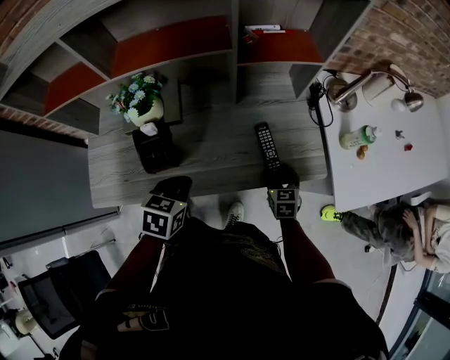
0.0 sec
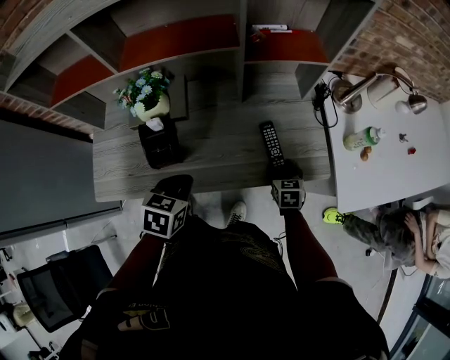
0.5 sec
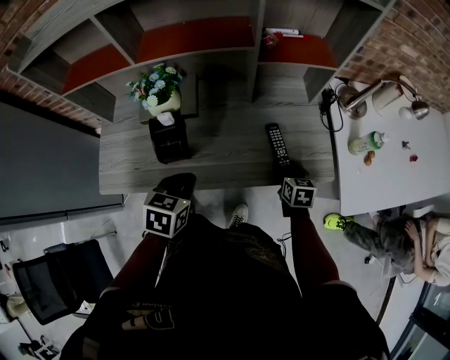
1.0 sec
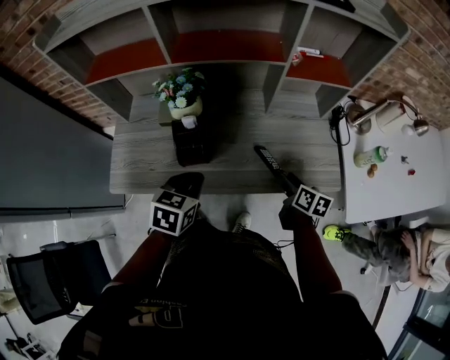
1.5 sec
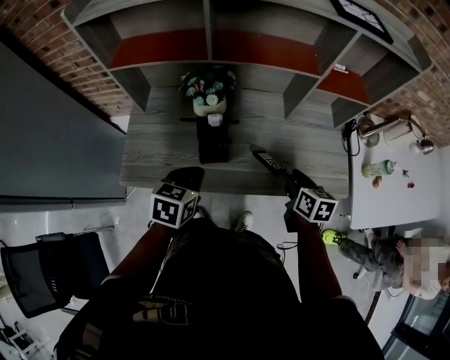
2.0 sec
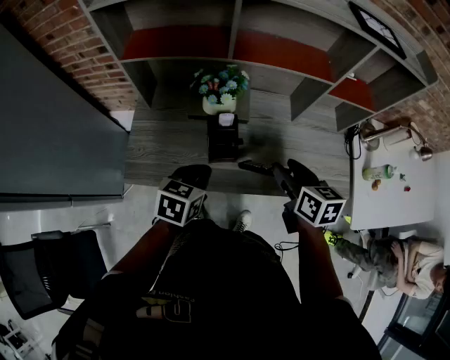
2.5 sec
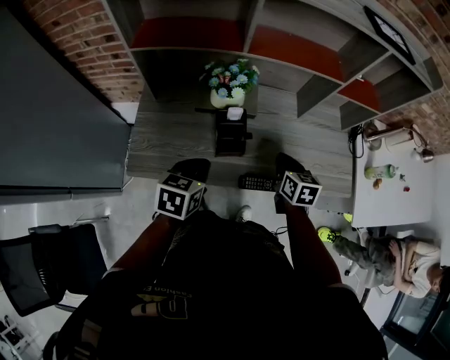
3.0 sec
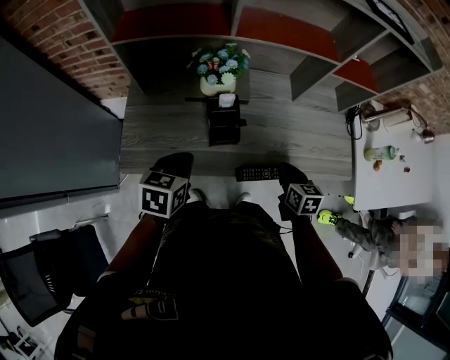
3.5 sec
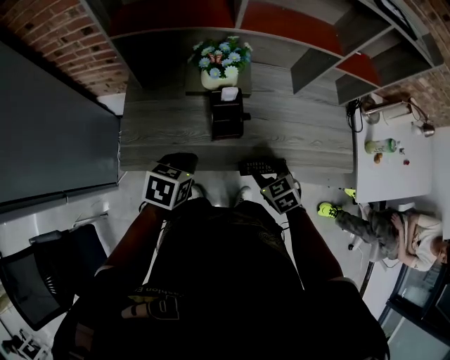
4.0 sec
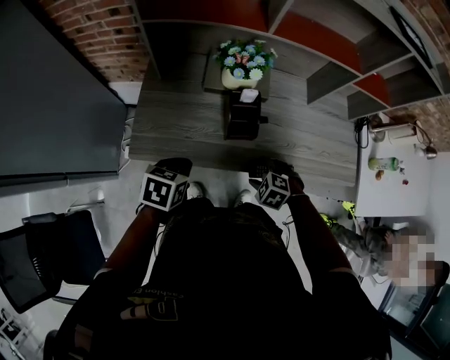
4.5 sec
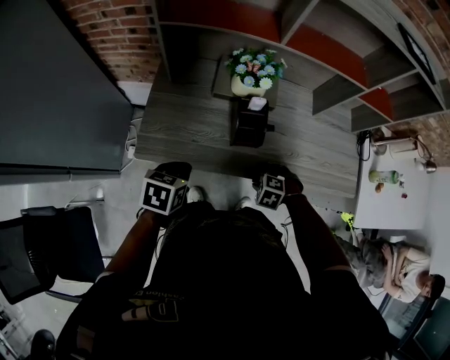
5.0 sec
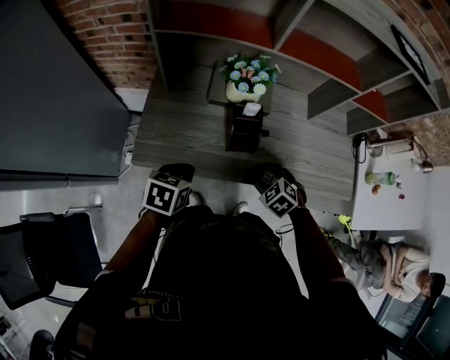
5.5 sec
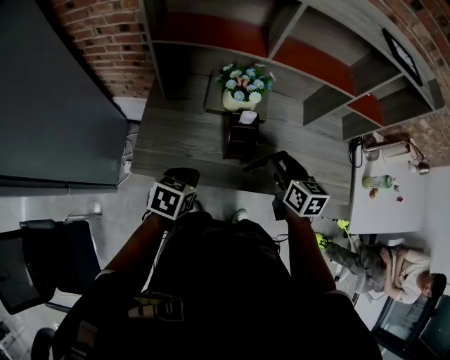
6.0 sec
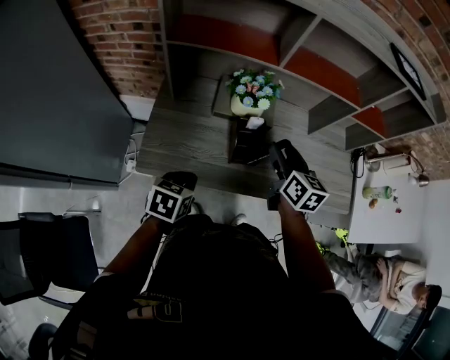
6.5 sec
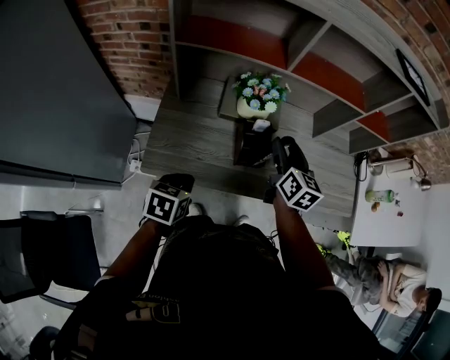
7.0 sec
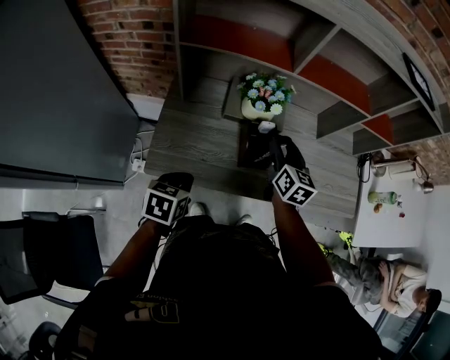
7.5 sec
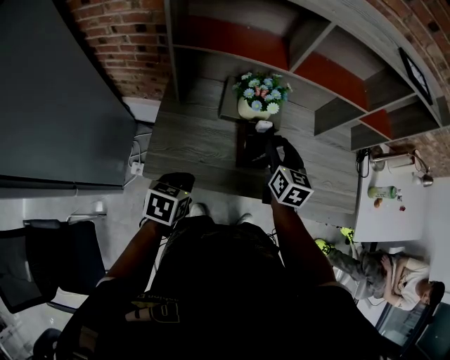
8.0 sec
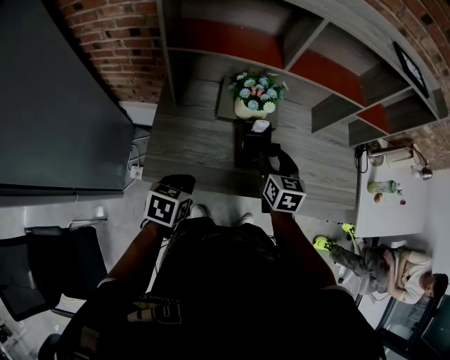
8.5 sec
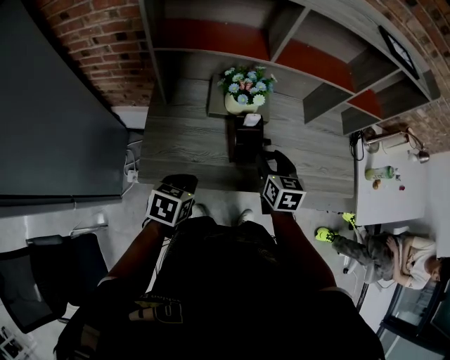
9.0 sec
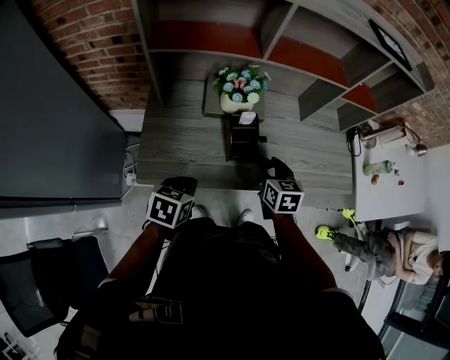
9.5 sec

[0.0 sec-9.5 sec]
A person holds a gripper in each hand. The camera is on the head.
0.0 sec to 2.0 sec: The left gripper is displaced to the left by about 15 cm. Meanwhile the right gripper travels upward and to the left by about 20 cm, and swivels approximately 20 degrees.
2.0 sec to 4.0 sec: The left gripper heads to the left and downward, covering approximately 10 cm. The right gripper goes roughly 20 cm to the left, downward and backward, rotates around the line of its fingers by roughly 40 degrees, counterclockwise from behind, and closes, then opens again.
4.0 sec to 5.5 sec: The left gripper shifts by approximately 5 cm, while the right gripper moves roughly 10 cm downward and comes back, and turns by approximately 30 degrees.
5.5 sec to 7.5 sec: The right gripper is displaced forward and upward by approximately 20 cm, and tilts its fingers some 40 degrees upward.
7.5 sec to 9.5 sec: The right gripper is displaced backward and downward by approximately 10 cm.

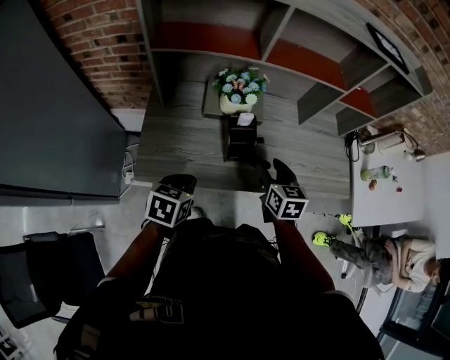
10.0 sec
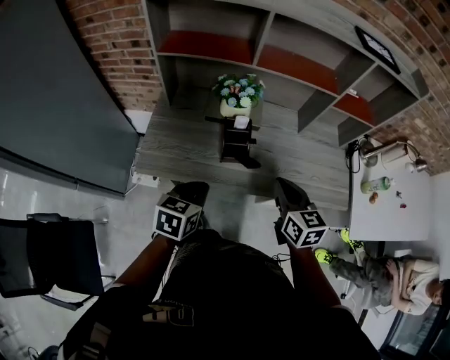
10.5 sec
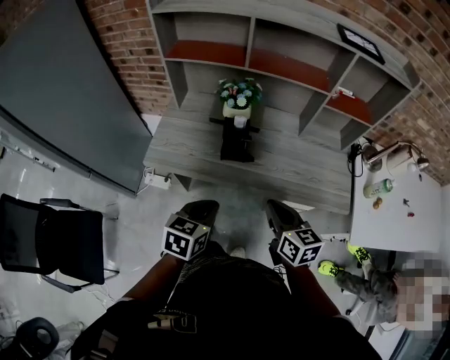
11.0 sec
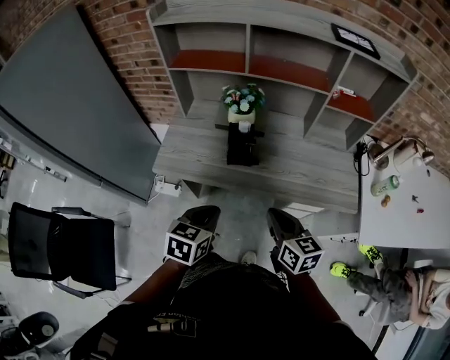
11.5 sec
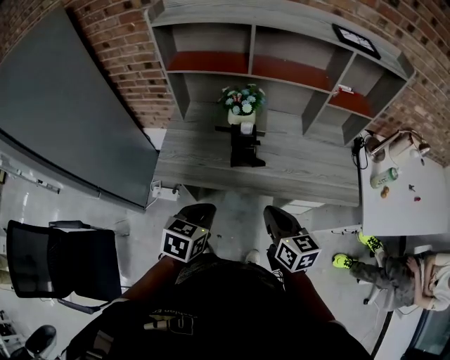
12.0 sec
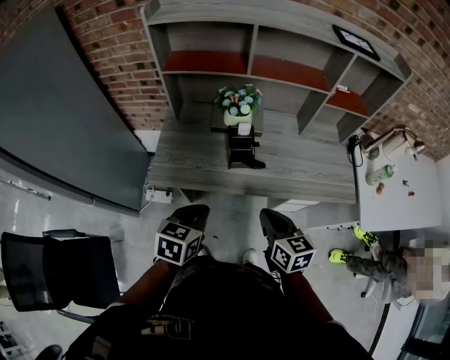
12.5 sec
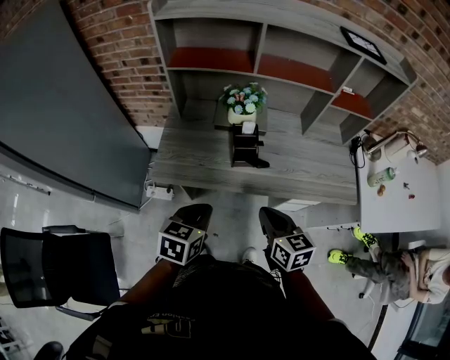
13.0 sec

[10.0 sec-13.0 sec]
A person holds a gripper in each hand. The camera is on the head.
10.0 sec to 11.5 sec: The right gripper heads backward, covering roughly 20 cm, rotates approximately 20 degrees, and closes; the left gripper moves backward, to the right and upward, approximately 20 cm.
11.5 sec to 13.0 sec: Both grippers travel together to the left, about 10 cm.

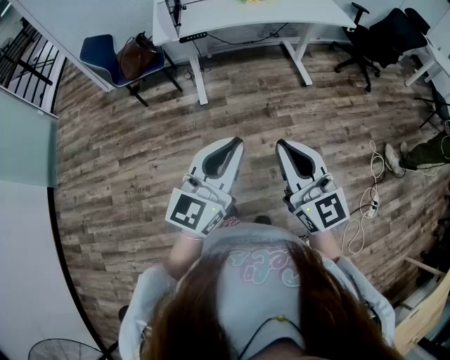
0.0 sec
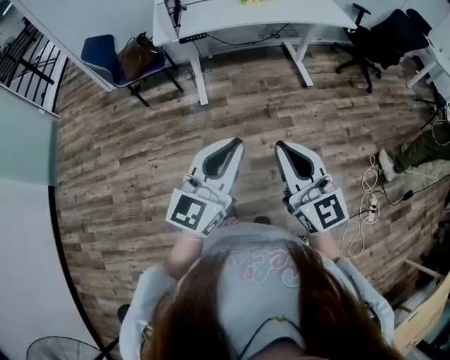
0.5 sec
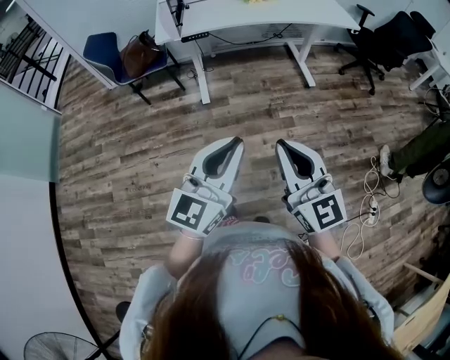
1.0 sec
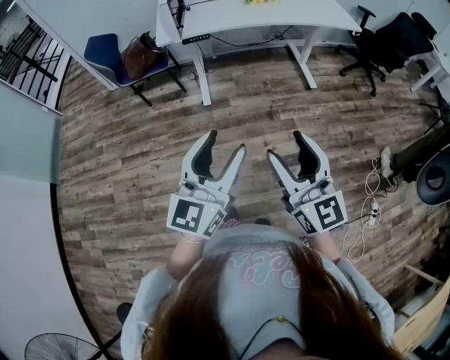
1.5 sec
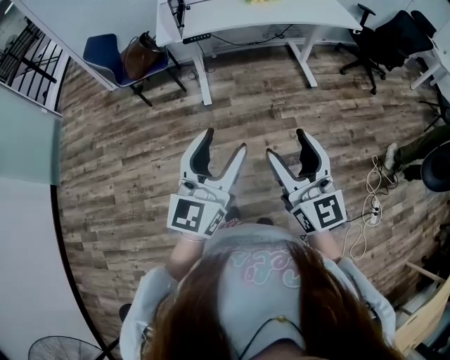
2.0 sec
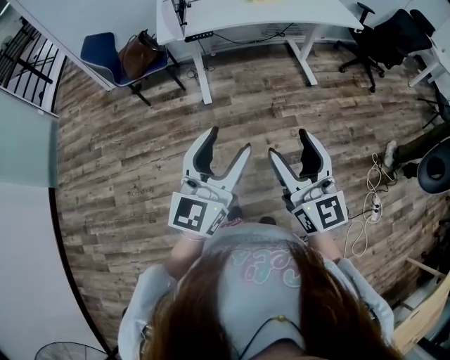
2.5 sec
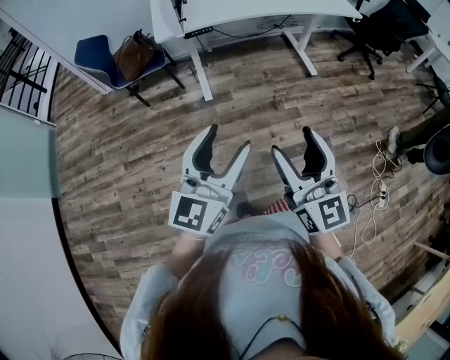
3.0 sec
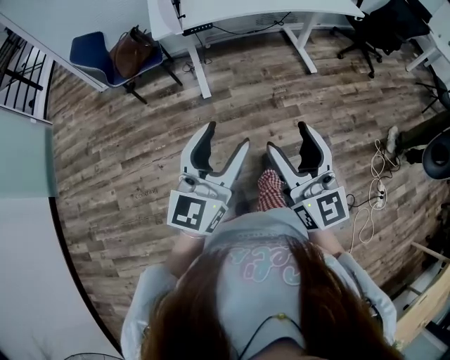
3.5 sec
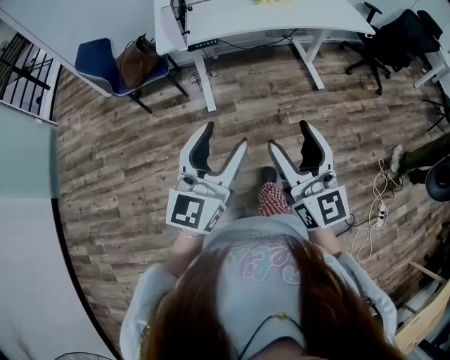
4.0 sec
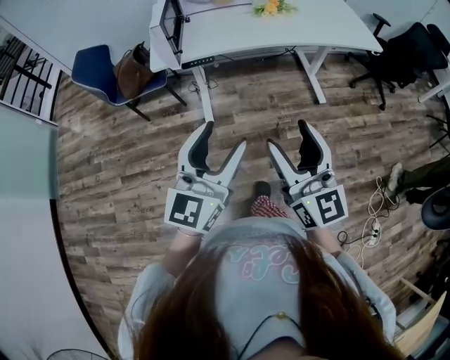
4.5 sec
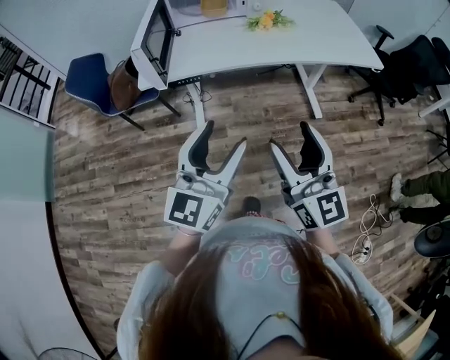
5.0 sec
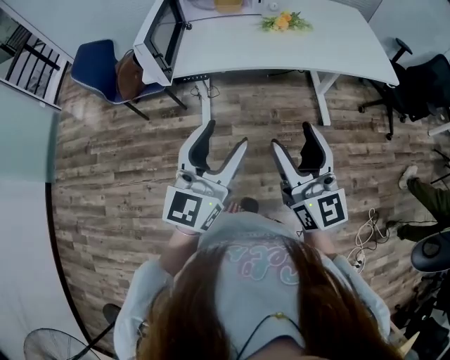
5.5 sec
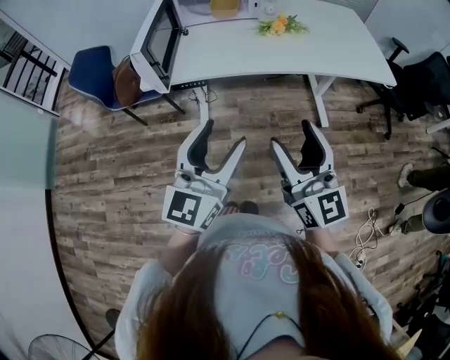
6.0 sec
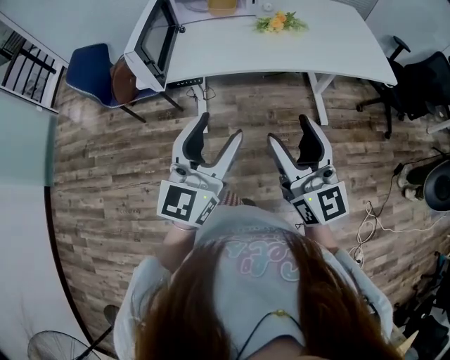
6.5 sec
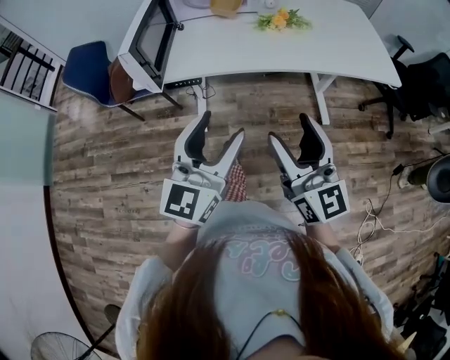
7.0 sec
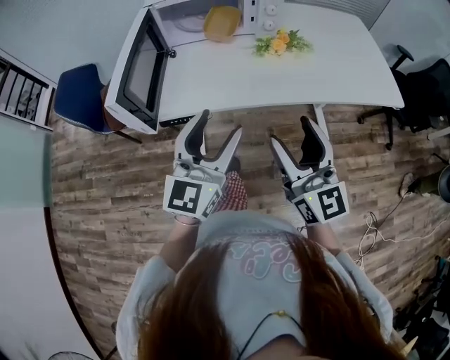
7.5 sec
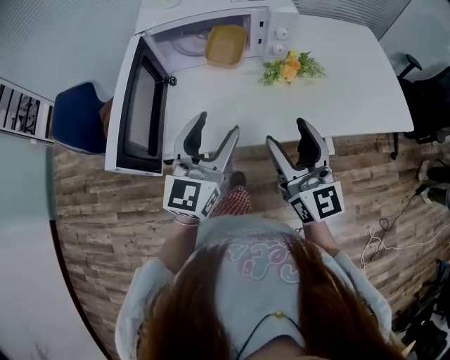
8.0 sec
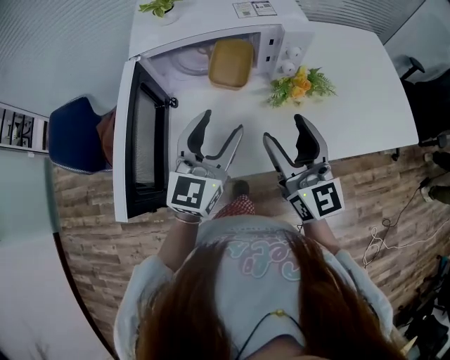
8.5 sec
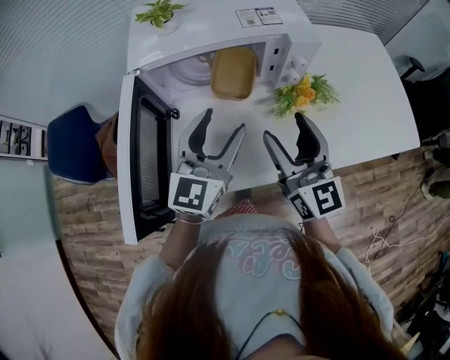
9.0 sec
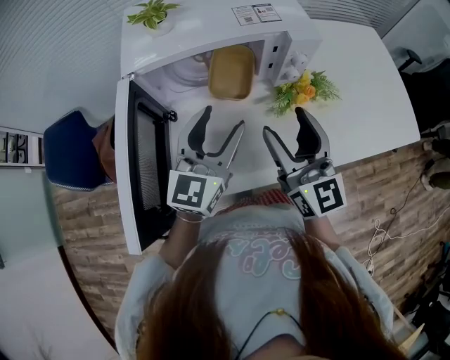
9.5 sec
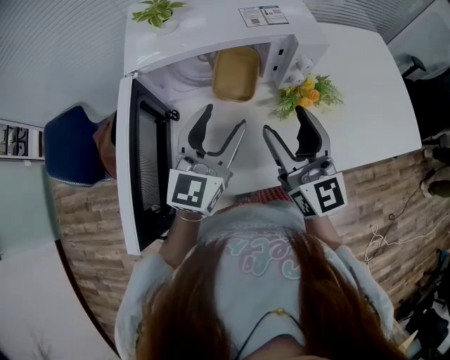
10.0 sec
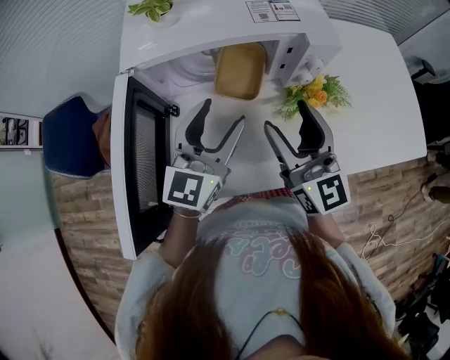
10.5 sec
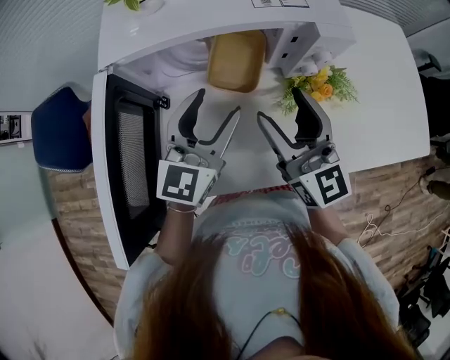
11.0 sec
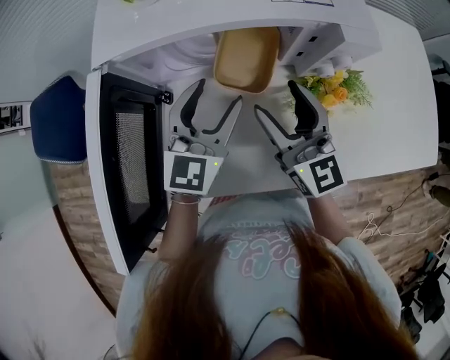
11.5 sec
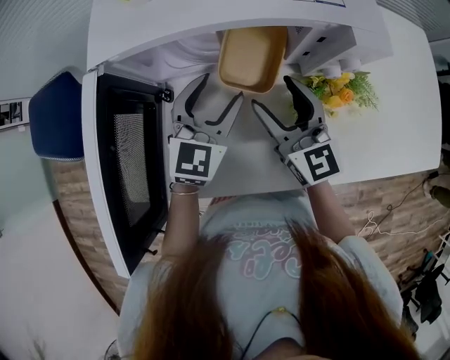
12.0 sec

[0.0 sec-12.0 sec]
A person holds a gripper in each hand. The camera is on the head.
0.0 sec to 2.0 sec: The left gripper opens, while the right gripper opens up.
2.0 sec to 4.0 sec: Both grippers move forward and to the left, some 15 cm.
4.0 sec to 6.0 sec: Both grippers travel together forward and to the right, some 25 cm.
6.0 sec to 8.0 sec: Both grippers move forward, some 30 cm.
8.0 sec to 10.0 sec: The grippers both shift forward by some 15 cm.
10.0 sec to 12.0 sec: Both grippers travel together downward and forward, about 15 cm. The left gripper swivels about 20 degrees.

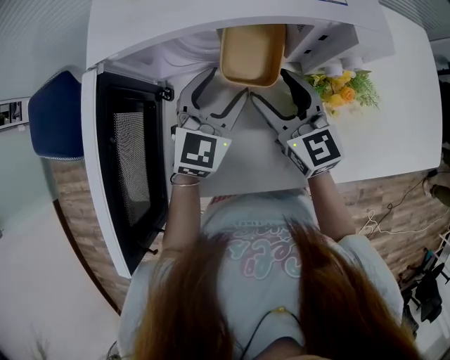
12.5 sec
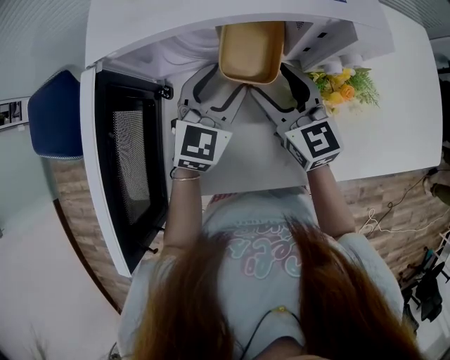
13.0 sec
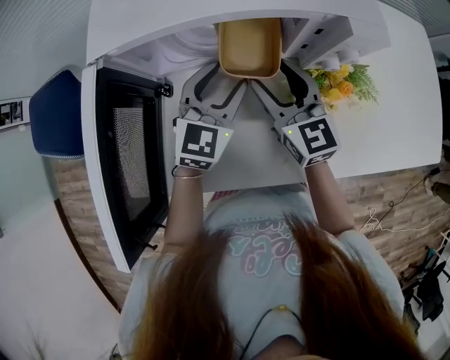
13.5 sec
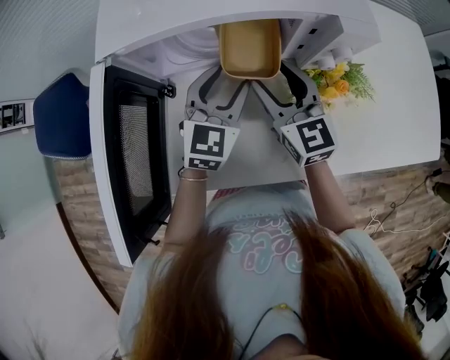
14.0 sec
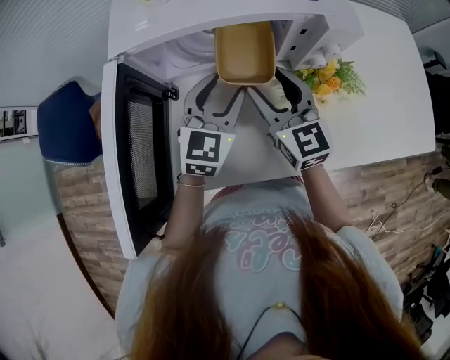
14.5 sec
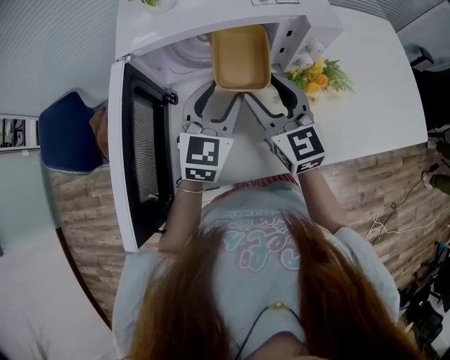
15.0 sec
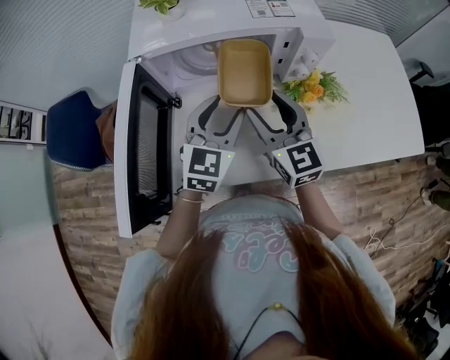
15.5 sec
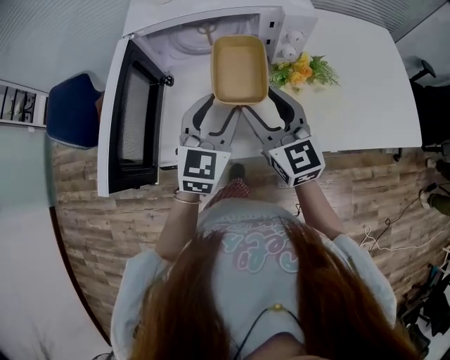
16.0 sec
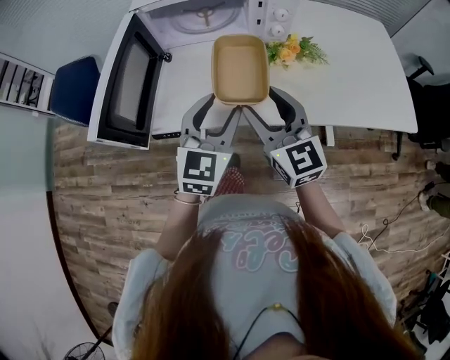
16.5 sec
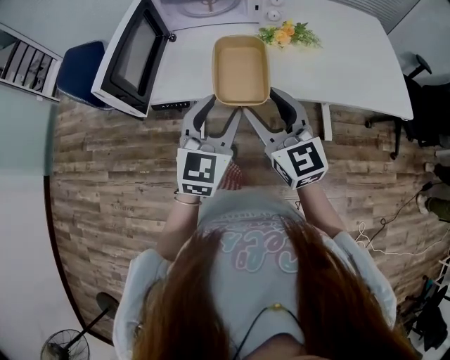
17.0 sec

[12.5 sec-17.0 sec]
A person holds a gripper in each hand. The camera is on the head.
12.5 sec to 14.5 sec: The grippers make only small movements.
14.5 sec to 17.0 sec: Both grippers move backward, roughly 35 cm.
